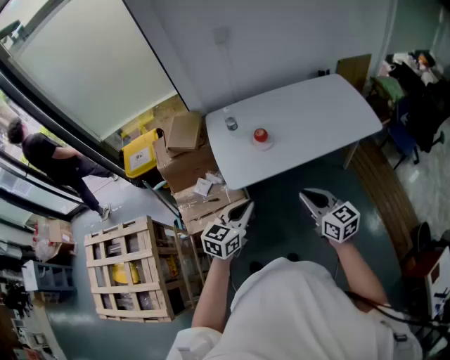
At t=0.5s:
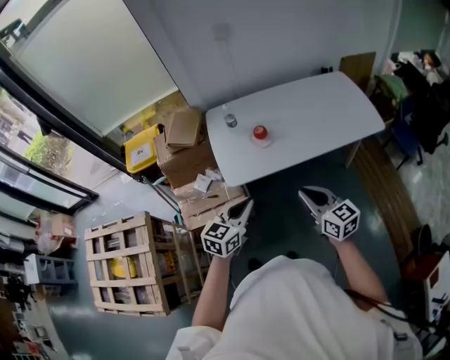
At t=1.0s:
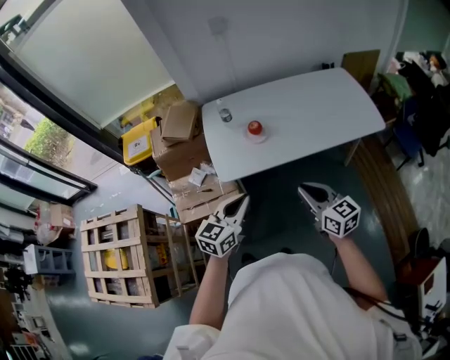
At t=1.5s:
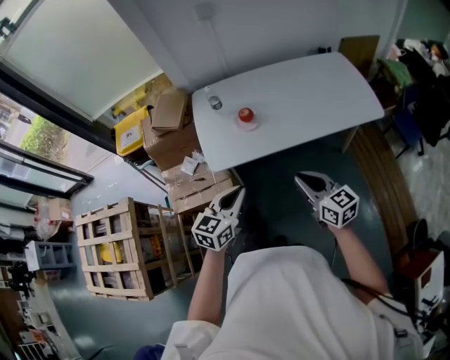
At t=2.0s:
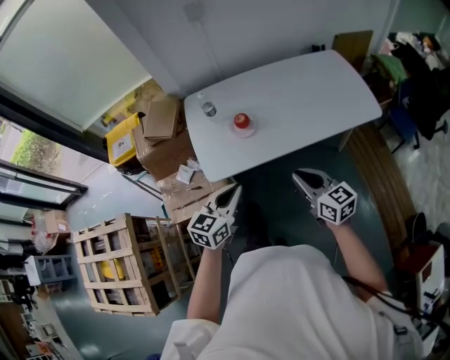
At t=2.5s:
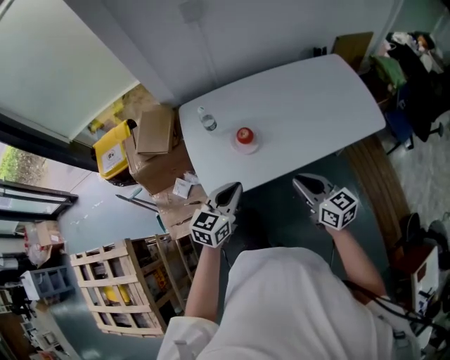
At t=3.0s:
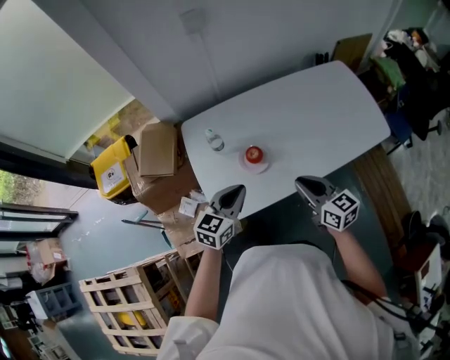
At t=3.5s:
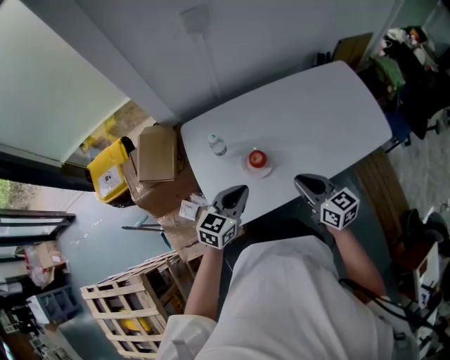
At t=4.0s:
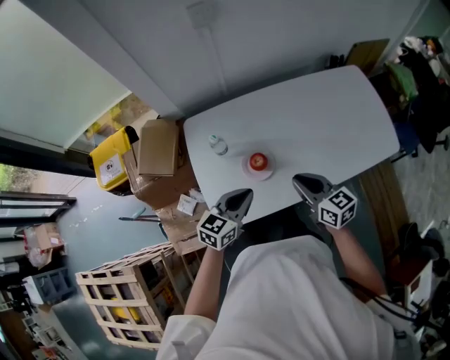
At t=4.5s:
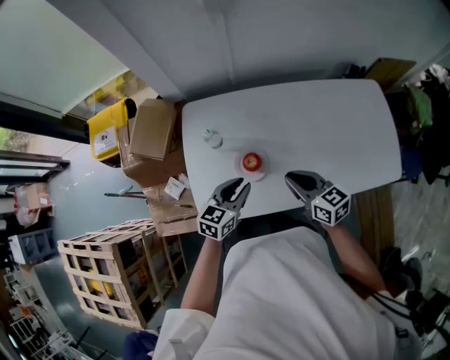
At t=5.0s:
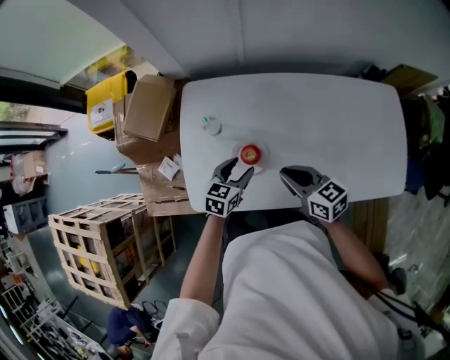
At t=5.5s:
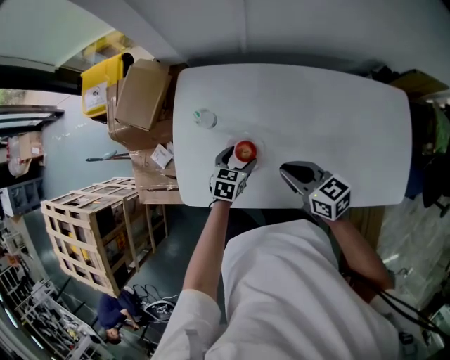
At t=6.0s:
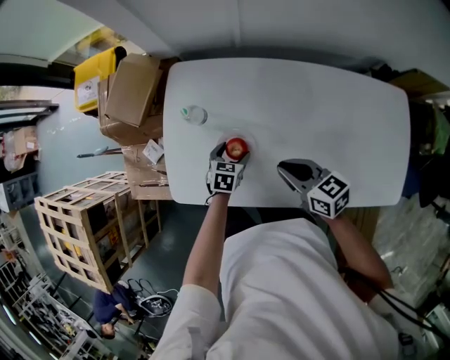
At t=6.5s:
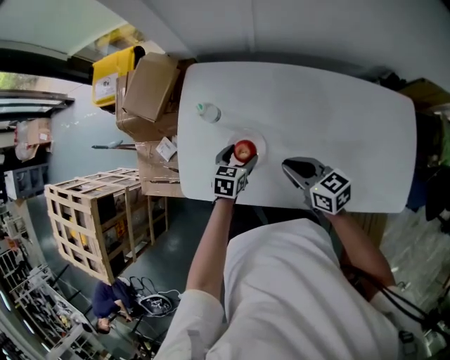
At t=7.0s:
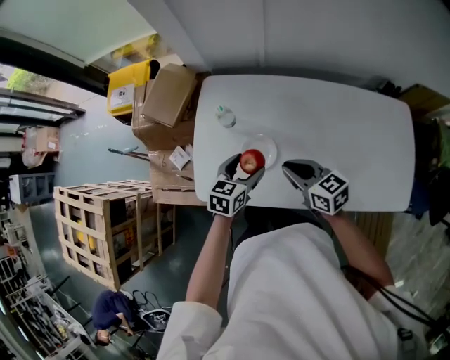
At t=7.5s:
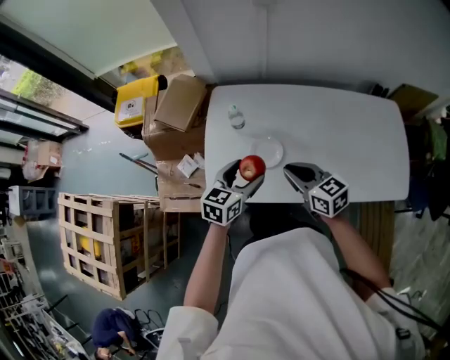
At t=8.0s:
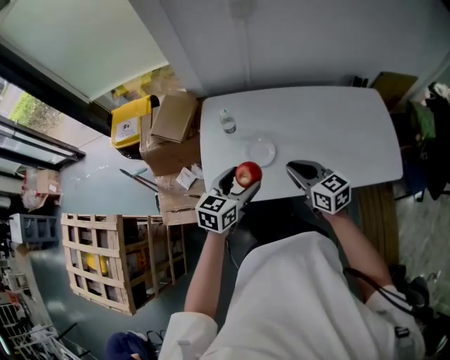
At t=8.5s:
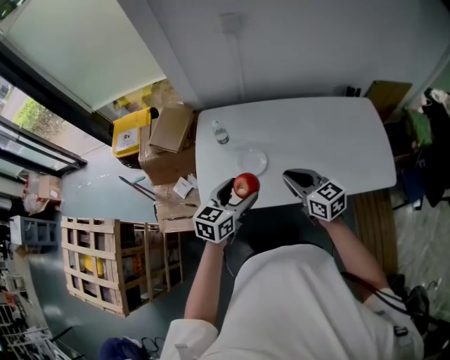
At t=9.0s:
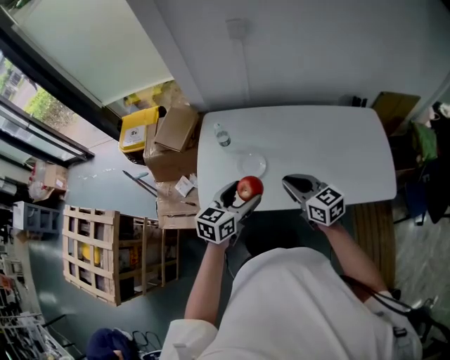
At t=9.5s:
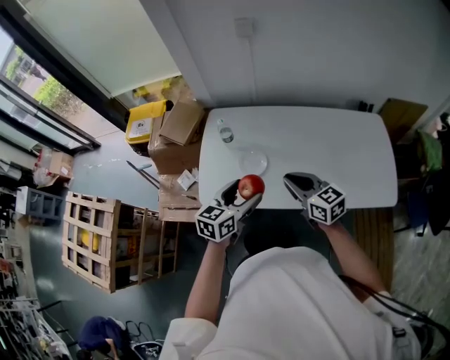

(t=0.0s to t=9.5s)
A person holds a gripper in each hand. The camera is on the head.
t=0.0s - t=2.0s: The two grippers go some 10 cm forward and to the right.
t=2.0s - t=4.0s: The two grippers go approximately 25 cm forward.
t=4.0s - t=5.5s: The left gripper shifts about 20 cm downward, rotates approximately 40 degrees, and opens. The right gripper ends up approximately 10 cm from where it was, and turns by about 30 degrees.
t=5.5s - t=7.5s: The left gripper heads upward, covering approximately 20 cm, and turns by roughly 20 degrees; the right gripper travels to the left, upward and backward by roughly 10 cm.
t=7.5s - t=9.5s: The right gripper moves to the right, backward and upward, approximately 10 cm. The left gripper travels backward, to the right and upward by about 15 cm.

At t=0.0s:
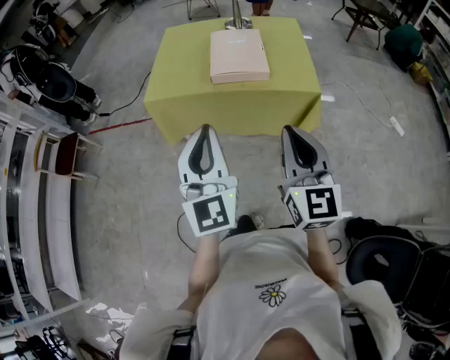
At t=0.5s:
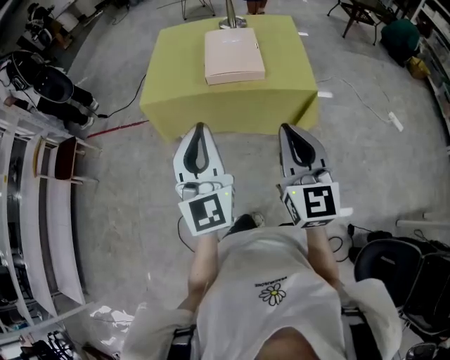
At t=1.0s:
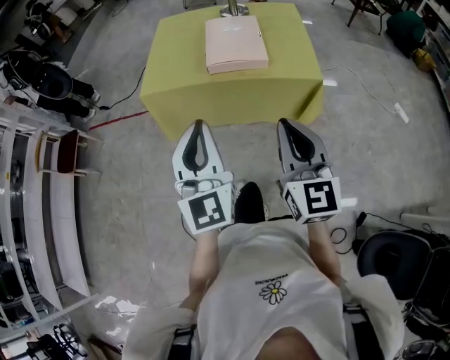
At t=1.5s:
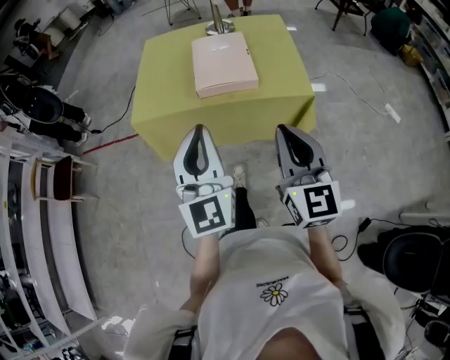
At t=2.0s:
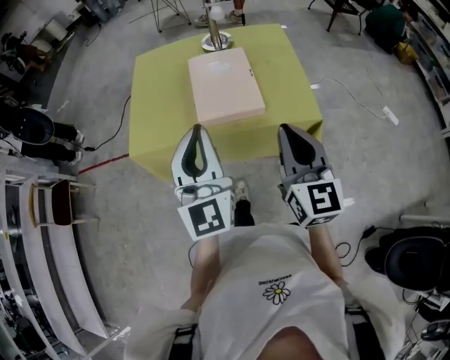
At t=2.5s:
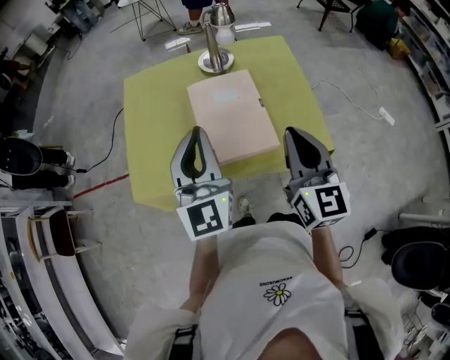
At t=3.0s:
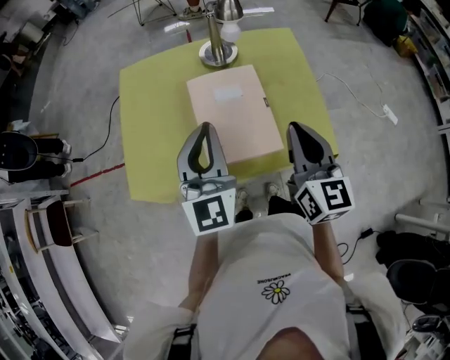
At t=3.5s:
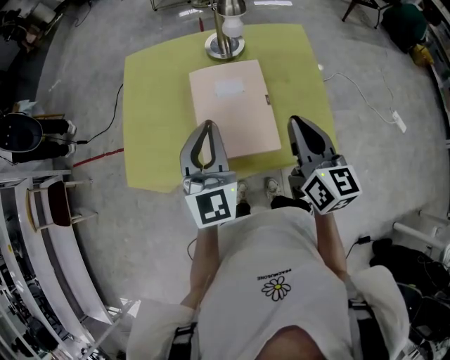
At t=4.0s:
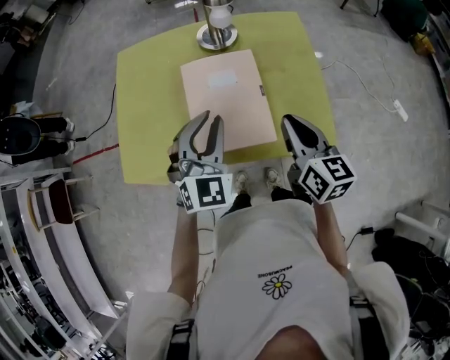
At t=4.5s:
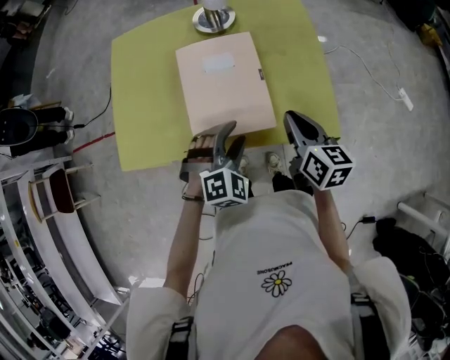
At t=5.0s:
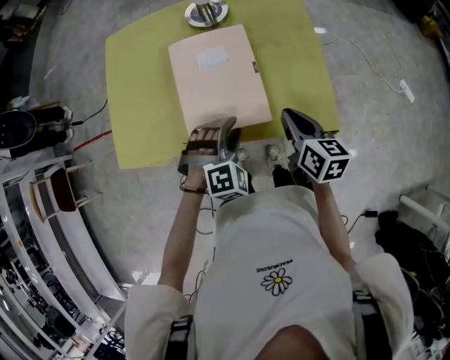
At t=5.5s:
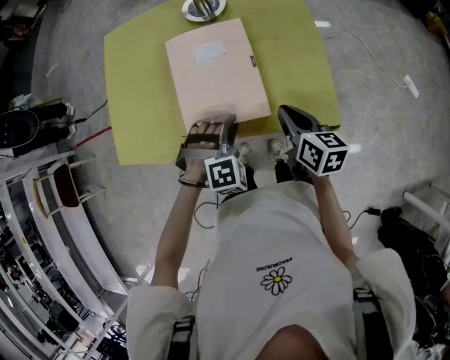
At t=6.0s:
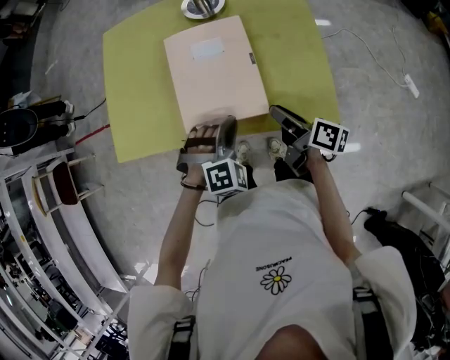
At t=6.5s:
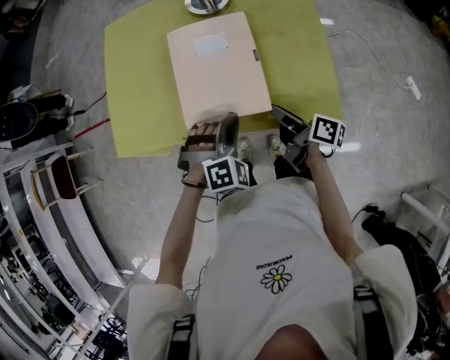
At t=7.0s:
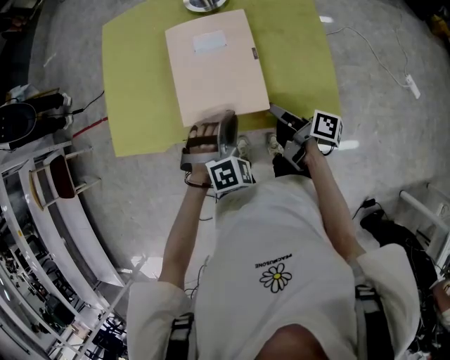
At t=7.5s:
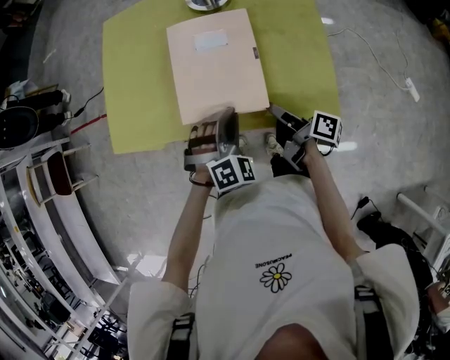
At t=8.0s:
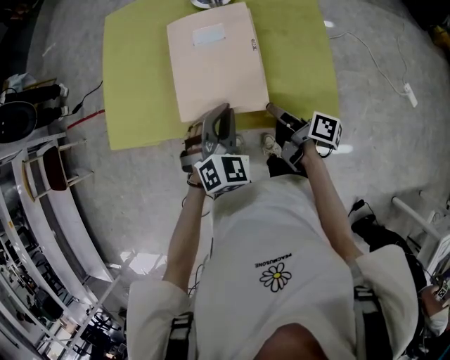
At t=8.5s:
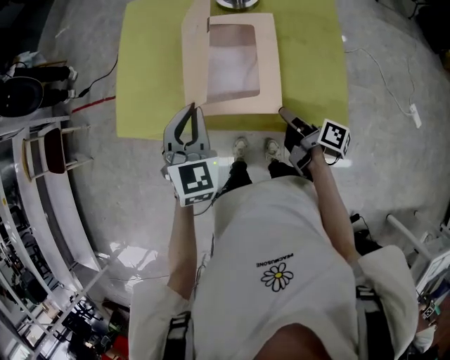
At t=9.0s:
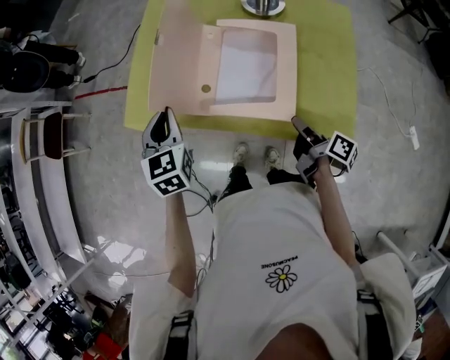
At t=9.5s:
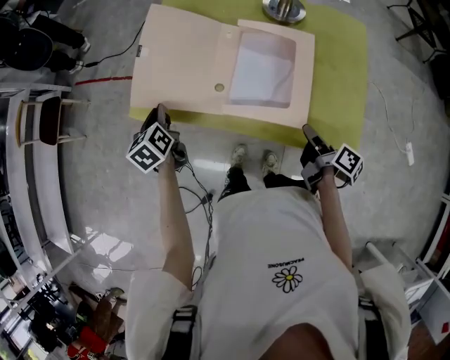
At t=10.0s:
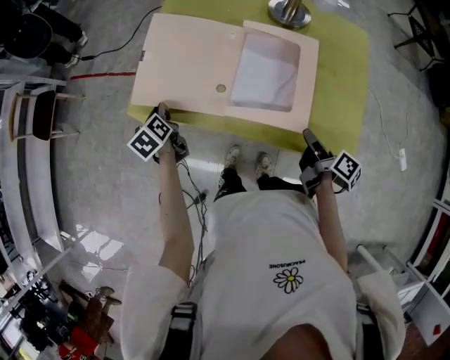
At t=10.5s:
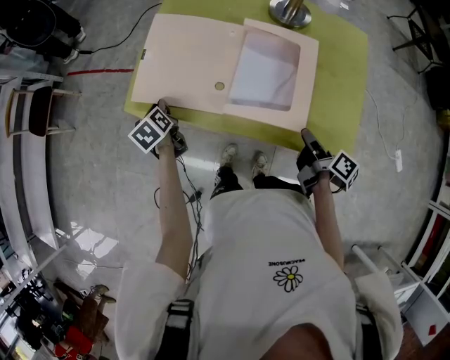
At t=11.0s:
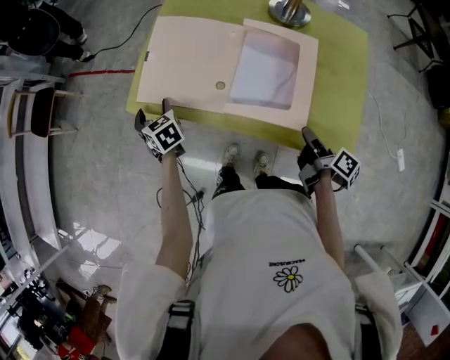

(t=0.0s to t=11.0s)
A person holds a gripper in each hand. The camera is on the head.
t=0.0s - t=2.0s: Both grippers move forward, approximately 25 cm.
t=2.0s - t=3.5s: The grippers both shift forward by approximately 25 cm.
t=3.5s - t=5.5s: Both grippers travel together downward, roughly 20 cm. The left gripper tips its fingers downward by approximately 50 degrees, and opens its fingers, while the right gripper turns by roughly 30 degrees.
t=5.5s - t=7.5s: The left gripper turns by approximately 20 degrees, while the right gripper shifts about 5 cm downward, rolls clockwise, seen from behind, by approximately 40 degrees, and opens up.
t=7.5s - t=9.0s: The left gripper is displaced to the left by roughly 20 cm, and rotates around the line of its fingers by roughly 60 degrees, counterclockwise from behind.
t=9.0s - t=11.0s: The left gripper heads downward, to the left and forward, covering approximately 20 cm, changes its angle by roughly 30 degrees, and opens up.

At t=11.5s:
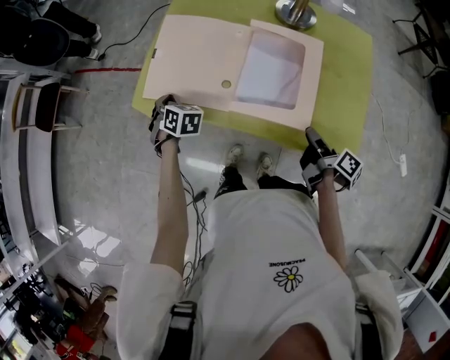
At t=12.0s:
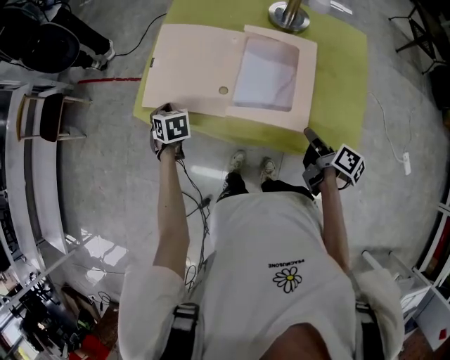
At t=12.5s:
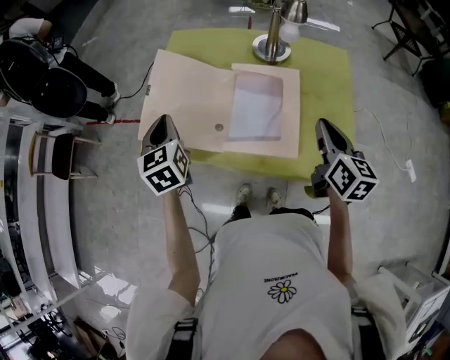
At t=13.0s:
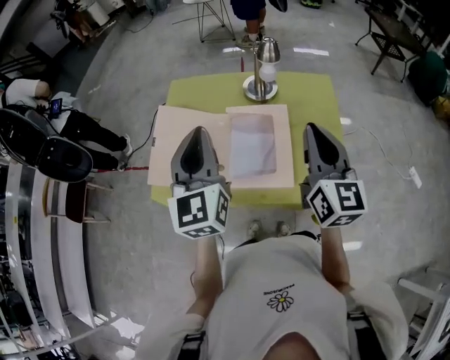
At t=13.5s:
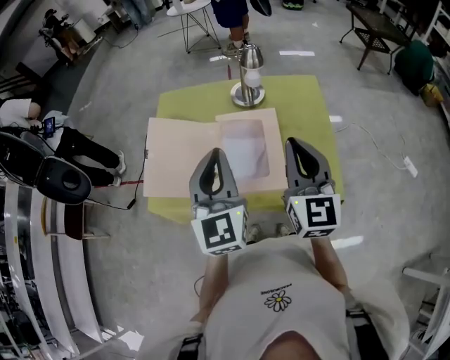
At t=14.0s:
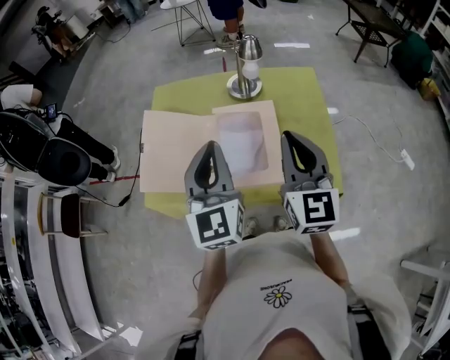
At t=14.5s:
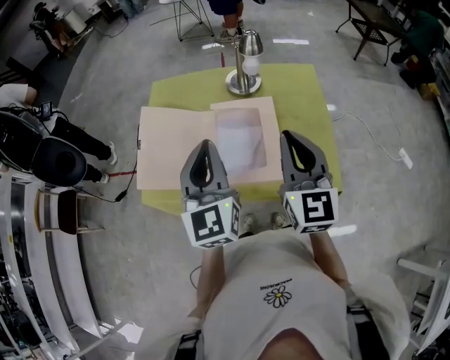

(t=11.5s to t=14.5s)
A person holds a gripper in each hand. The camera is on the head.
t=11.5s - t=13.0s: Both grippers travel together upward, about 35 cm. The right gripper rolls counterclockwise, seen from behind, by roughly 70 degrees. The left gripper angles its fingers upward, by approximately 50 degrees.
t=13.0s - t=14.5s: The left gripper changes place by roughly 5 cm.

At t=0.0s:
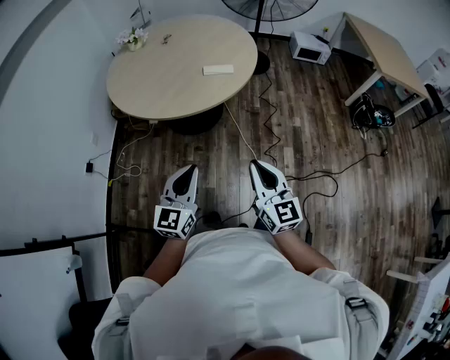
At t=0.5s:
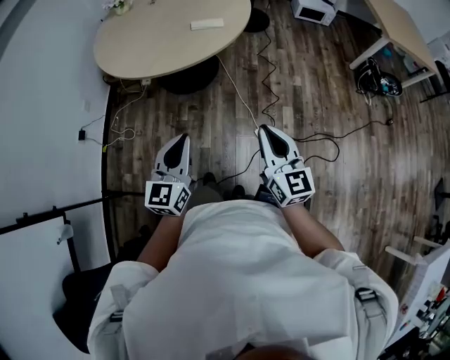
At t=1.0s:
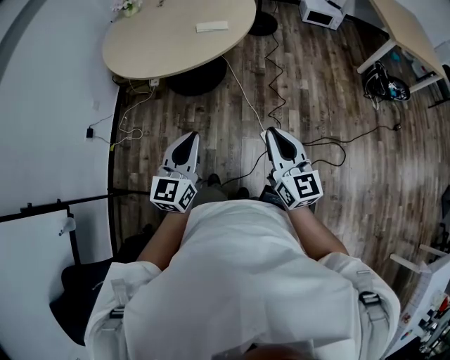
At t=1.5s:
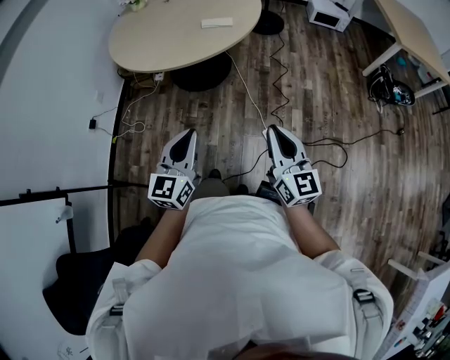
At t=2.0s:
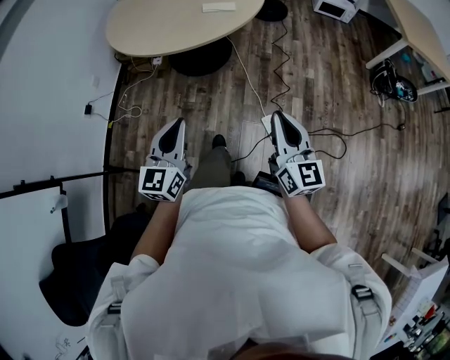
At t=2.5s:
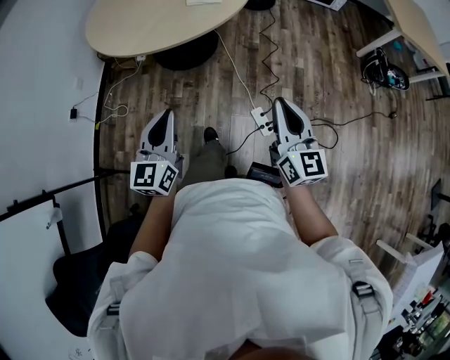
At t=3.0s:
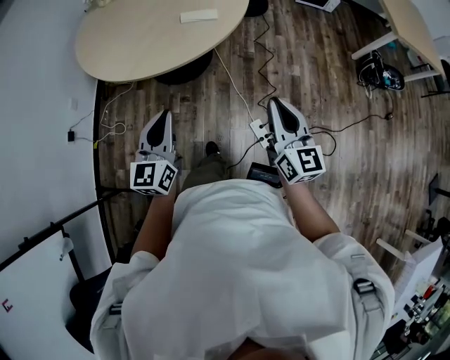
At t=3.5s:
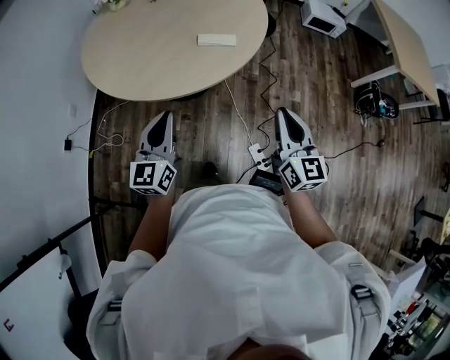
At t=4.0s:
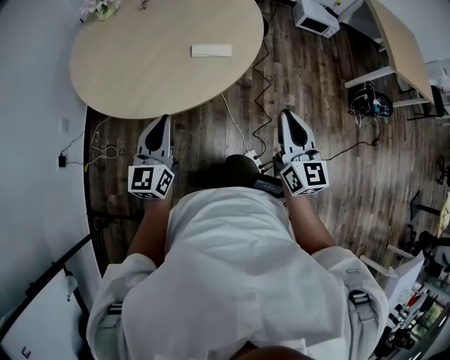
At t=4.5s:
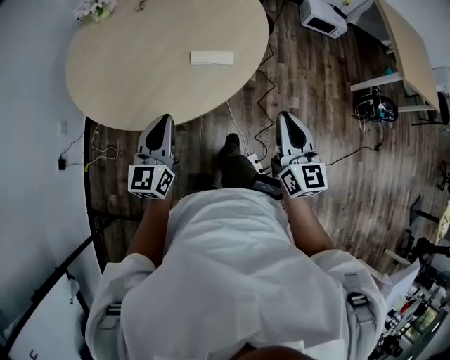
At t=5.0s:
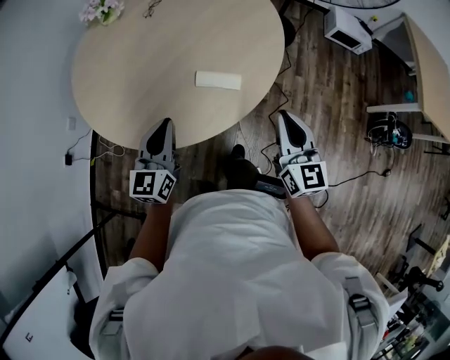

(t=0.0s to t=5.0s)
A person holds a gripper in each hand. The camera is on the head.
t=0.0s - t=2.5s: The right gripper moves to the right, approximately 15 cm, while the left gripper goes some 5 cm to the right.
t=2.5s - t=5.0s: The two grippers travel together, forward, some 50 cm.
